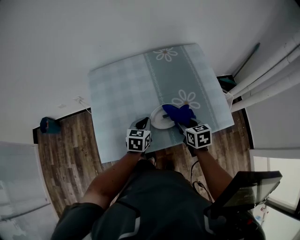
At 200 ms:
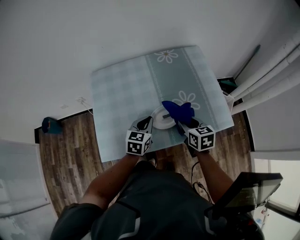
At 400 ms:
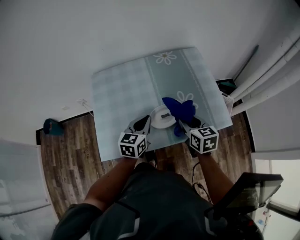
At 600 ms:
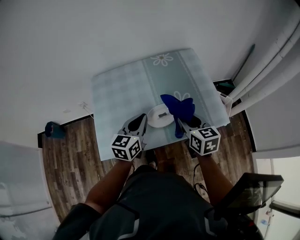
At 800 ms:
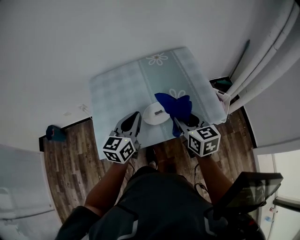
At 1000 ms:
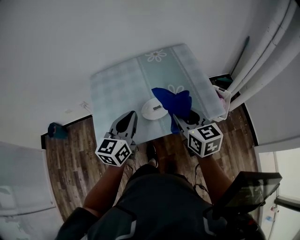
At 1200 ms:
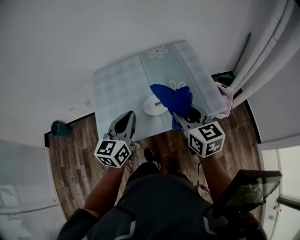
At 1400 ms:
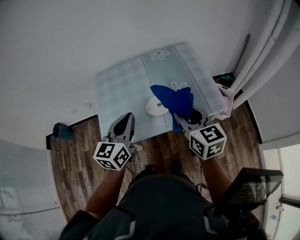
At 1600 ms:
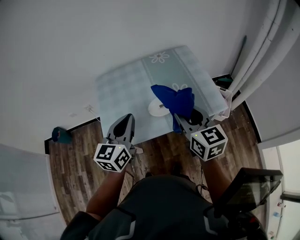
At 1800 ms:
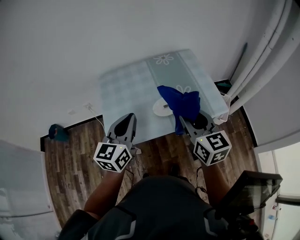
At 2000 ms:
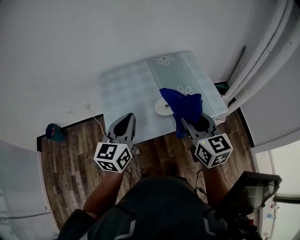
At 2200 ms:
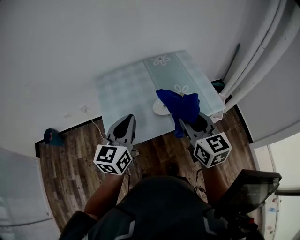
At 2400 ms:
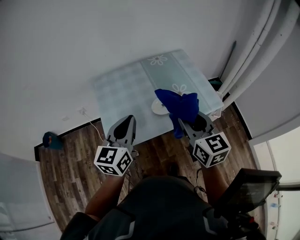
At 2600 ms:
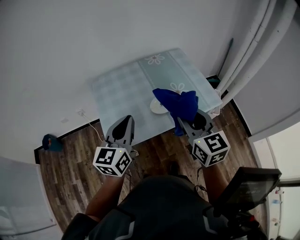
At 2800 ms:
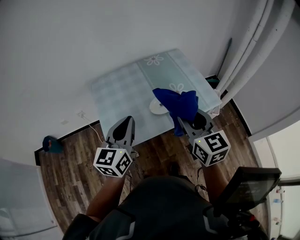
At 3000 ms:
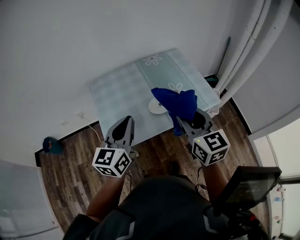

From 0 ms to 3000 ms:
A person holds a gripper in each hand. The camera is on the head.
From 0 ms to 1600 ms: The two grippers go about 25 cm upward and backward. The right gripper points its fingers some 30 degrees further upward; the left gripper turns by roughly 30 degrees.
From 1600 ms to 3000 ms: The left gripper shifts by some 5 cm, while the right gripper moves backward, roughly 5 cm.

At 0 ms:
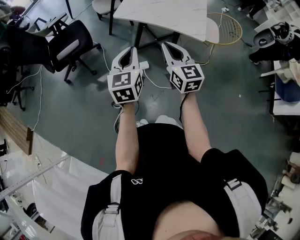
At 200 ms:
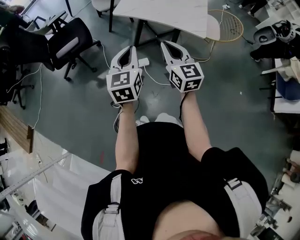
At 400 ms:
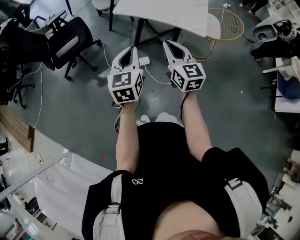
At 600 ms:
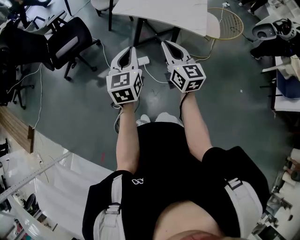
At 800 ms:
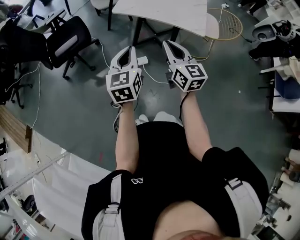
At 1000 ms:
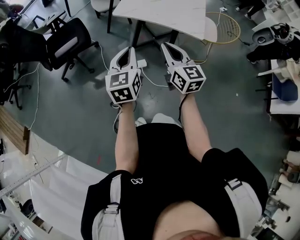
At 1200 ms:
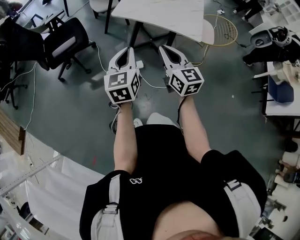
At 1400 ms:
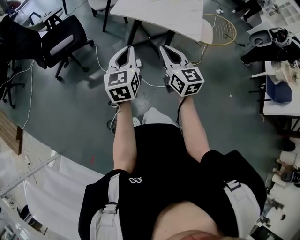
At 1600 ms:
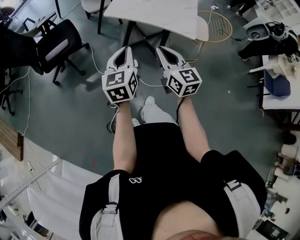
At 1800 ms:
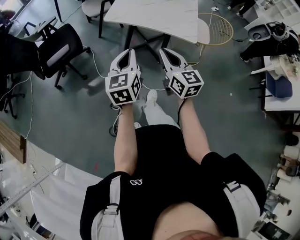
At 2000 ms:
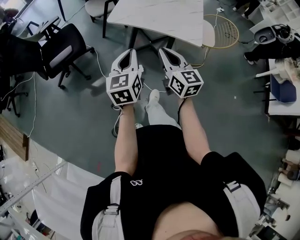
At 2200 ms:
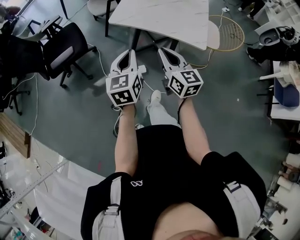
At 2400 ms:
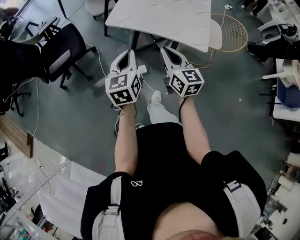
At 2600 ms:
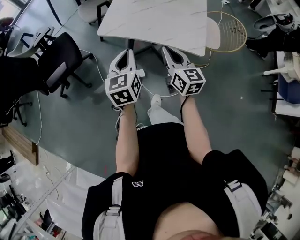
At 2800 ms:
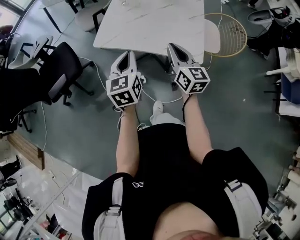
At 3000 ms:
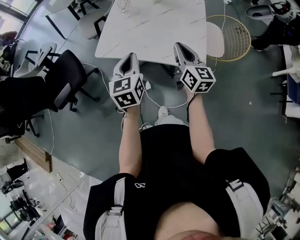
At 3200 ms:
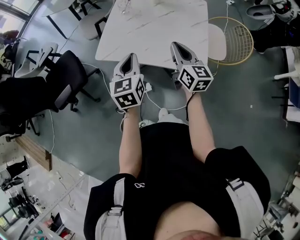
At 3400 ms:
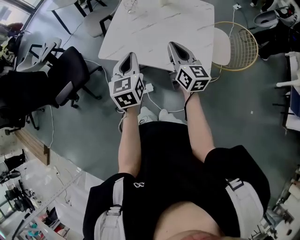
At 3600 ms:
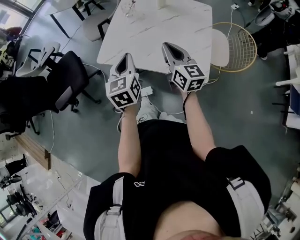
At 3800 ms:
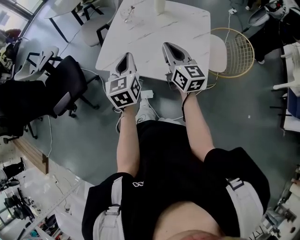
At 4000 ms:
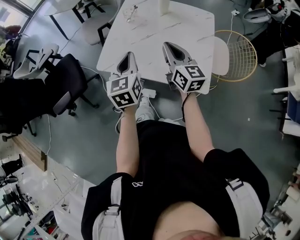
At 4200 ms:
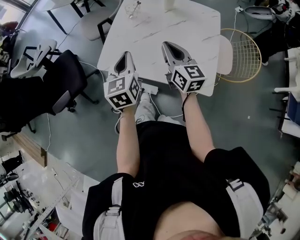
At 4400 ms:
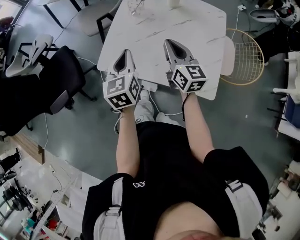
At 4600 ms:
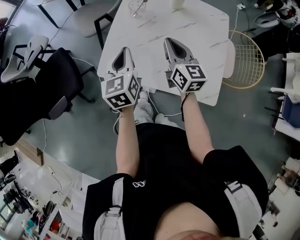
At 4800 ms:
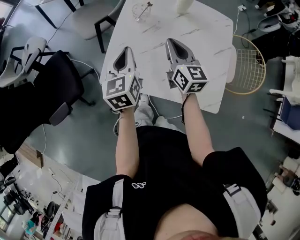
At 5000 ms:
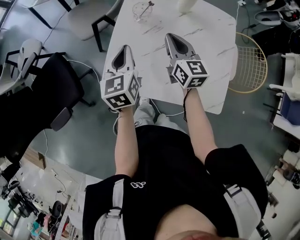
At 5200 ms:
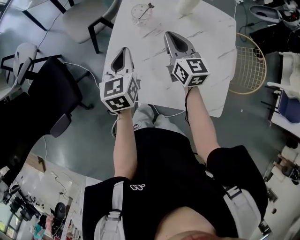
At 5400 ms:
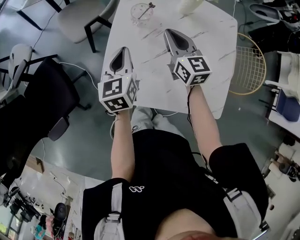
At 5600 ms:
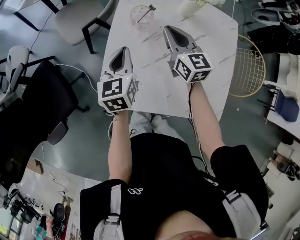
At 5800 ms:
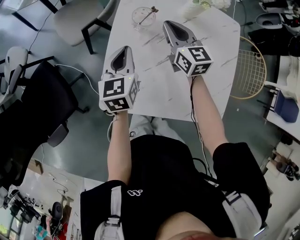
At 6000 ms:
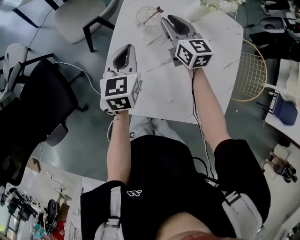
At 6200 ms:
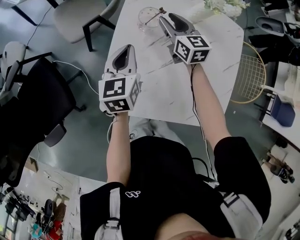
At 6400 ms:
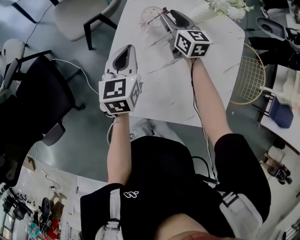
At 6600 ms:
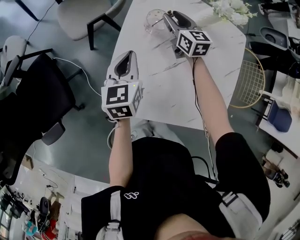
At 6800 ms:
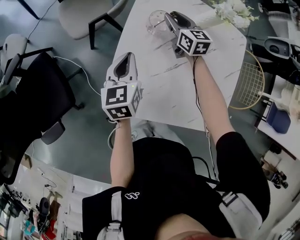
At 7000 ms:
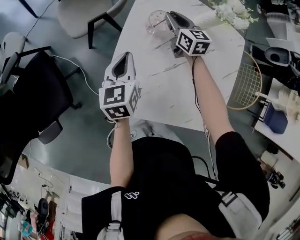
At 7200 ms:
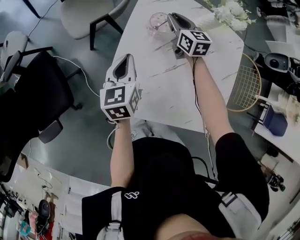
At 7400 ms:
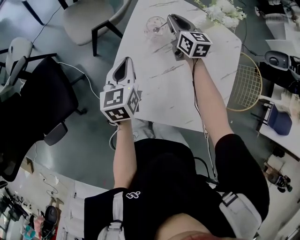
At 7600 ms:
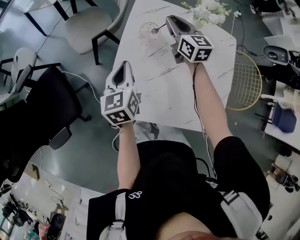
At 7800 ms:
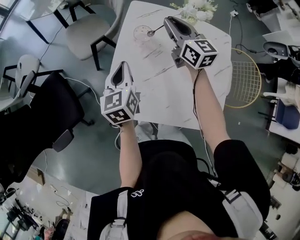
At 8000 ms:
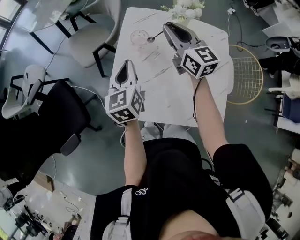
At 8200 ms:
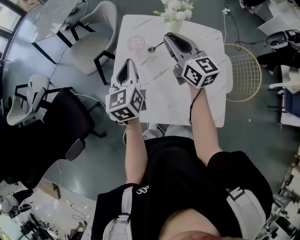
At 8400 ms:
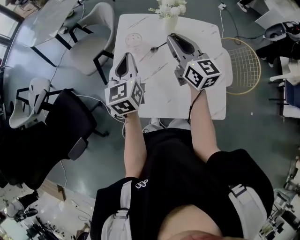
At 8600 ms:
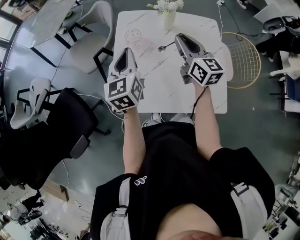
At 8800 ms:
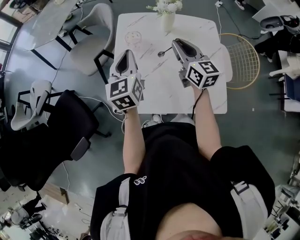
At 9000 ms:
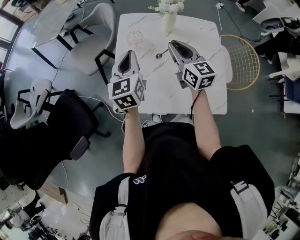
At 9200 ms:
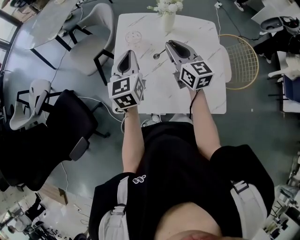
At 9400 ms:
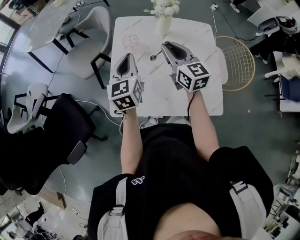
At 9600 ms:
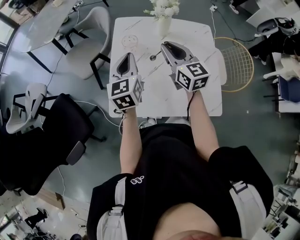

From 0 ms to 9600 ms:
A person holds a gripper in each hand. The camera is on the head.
From 0 ms to 1600 ms: The grippers move only a little.
From 1600 ms to 3200 ms: The grippers both shift forward and to the right by about 35 cm.
From 3200 ms to 4800 ms: The two grippers go some 25 cm forward.
From 4800 ms to 6400 ms: The right gripper moves forward and downward, approximately 25 cm, and opens up; the left gripper moves forward and downward, about 15 cm.
From 6400 ms to 8000 ms: The right gripper is displaced upward and backward by about 25 cm, rotates approximately 20 degrees, and closes up. Meanwhile the left gripper is displaced upward by about 10 cm.
From 8000 ms to 9600 ms: The right gripper moves backward, some 10 cm; the left gripper moves about 5 cm.

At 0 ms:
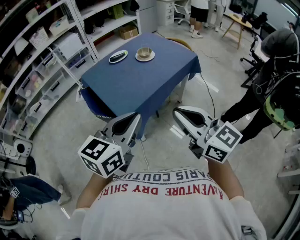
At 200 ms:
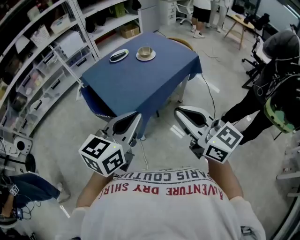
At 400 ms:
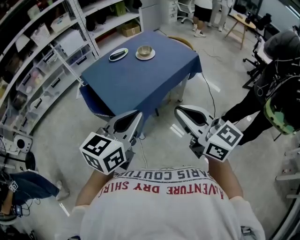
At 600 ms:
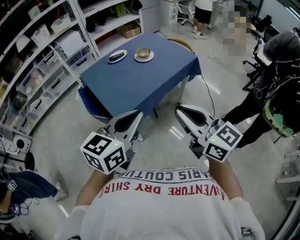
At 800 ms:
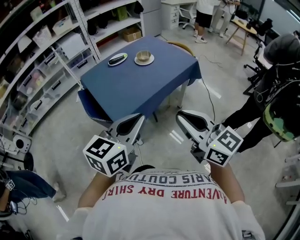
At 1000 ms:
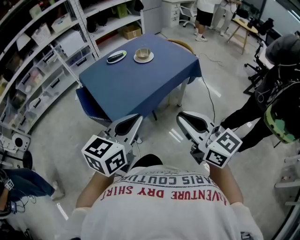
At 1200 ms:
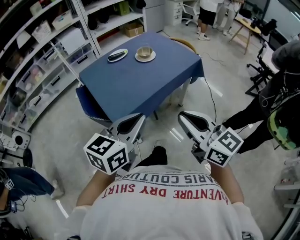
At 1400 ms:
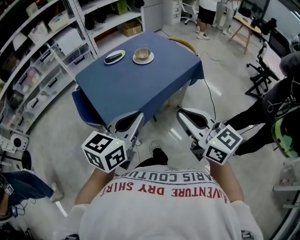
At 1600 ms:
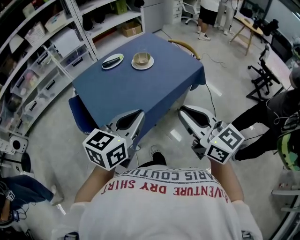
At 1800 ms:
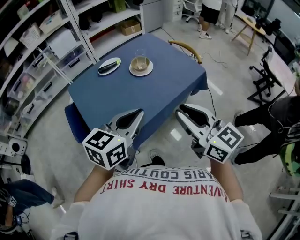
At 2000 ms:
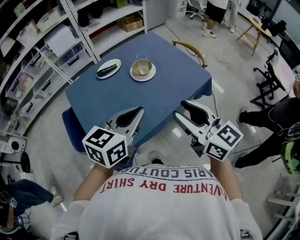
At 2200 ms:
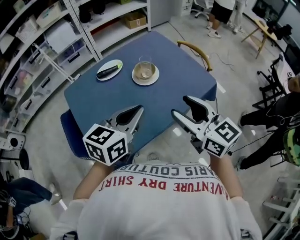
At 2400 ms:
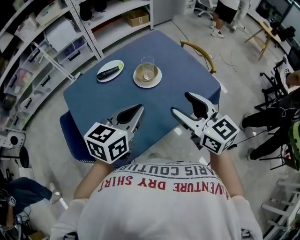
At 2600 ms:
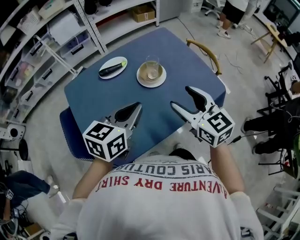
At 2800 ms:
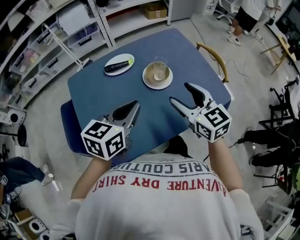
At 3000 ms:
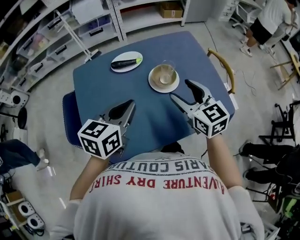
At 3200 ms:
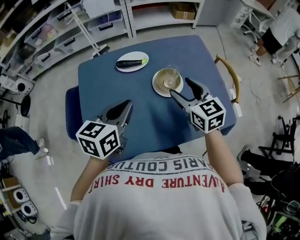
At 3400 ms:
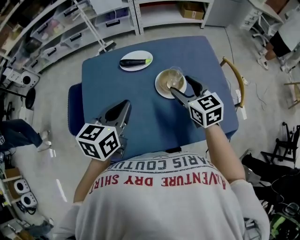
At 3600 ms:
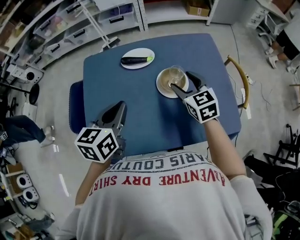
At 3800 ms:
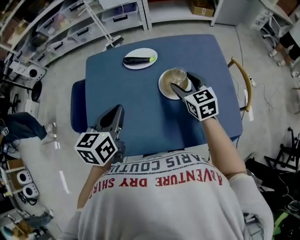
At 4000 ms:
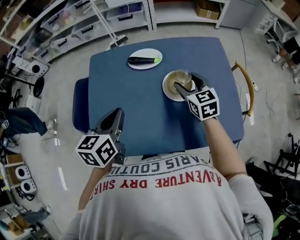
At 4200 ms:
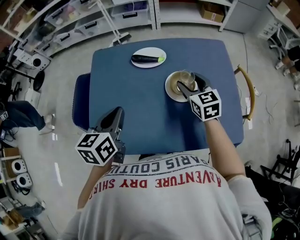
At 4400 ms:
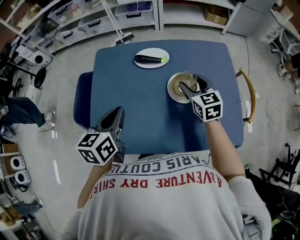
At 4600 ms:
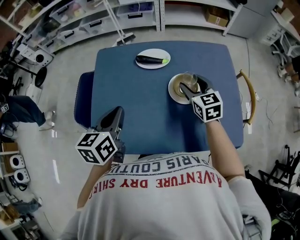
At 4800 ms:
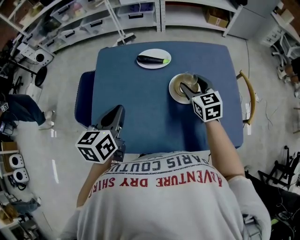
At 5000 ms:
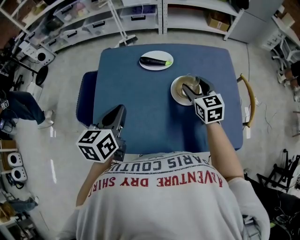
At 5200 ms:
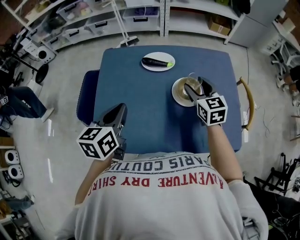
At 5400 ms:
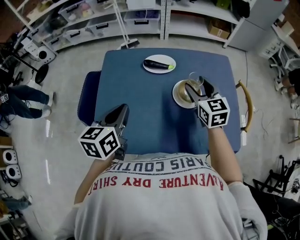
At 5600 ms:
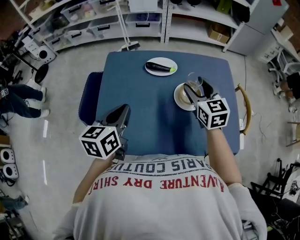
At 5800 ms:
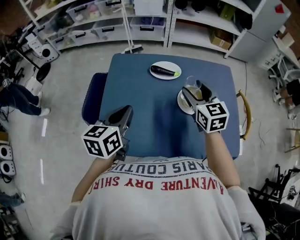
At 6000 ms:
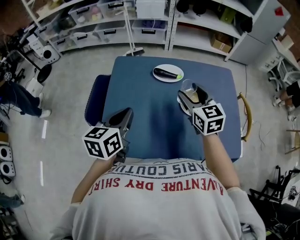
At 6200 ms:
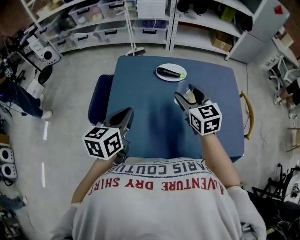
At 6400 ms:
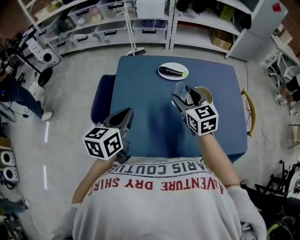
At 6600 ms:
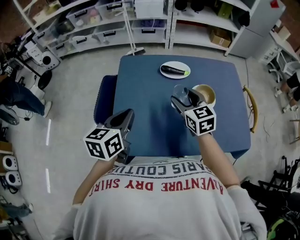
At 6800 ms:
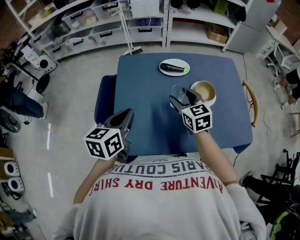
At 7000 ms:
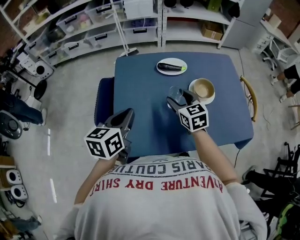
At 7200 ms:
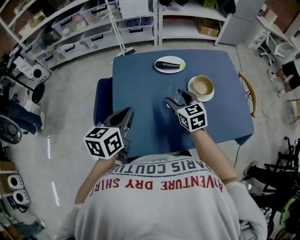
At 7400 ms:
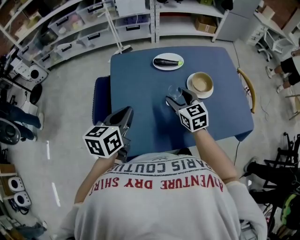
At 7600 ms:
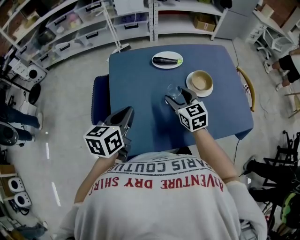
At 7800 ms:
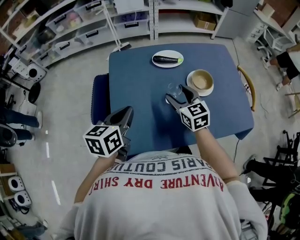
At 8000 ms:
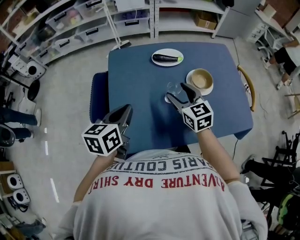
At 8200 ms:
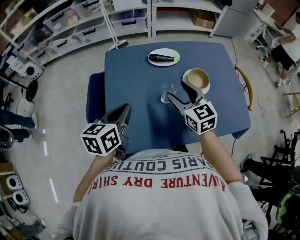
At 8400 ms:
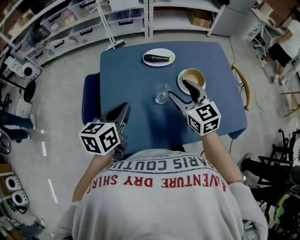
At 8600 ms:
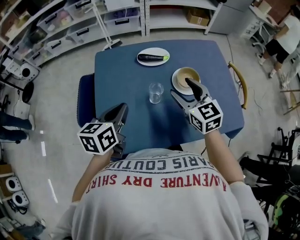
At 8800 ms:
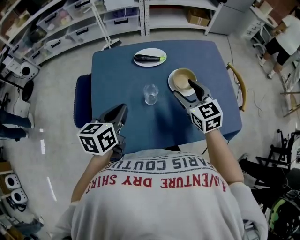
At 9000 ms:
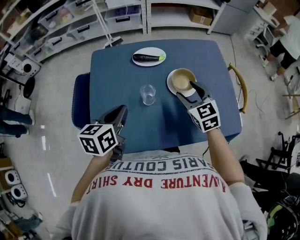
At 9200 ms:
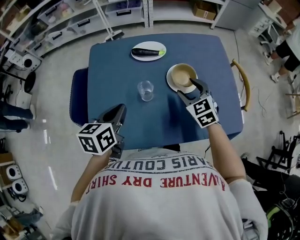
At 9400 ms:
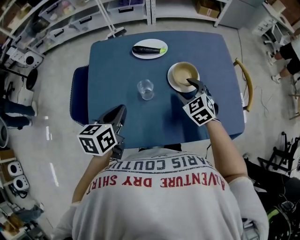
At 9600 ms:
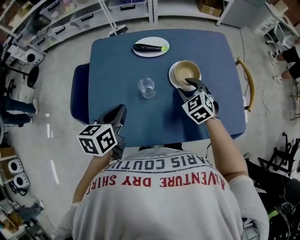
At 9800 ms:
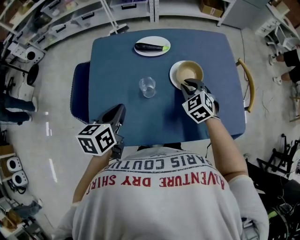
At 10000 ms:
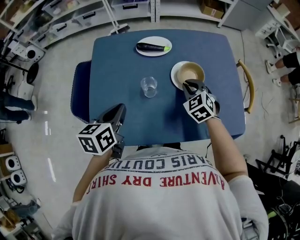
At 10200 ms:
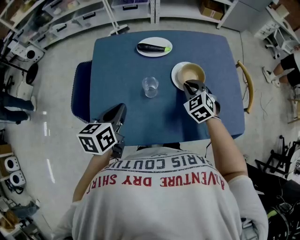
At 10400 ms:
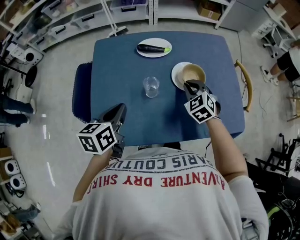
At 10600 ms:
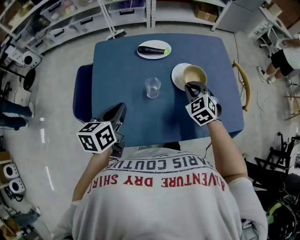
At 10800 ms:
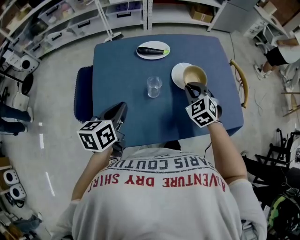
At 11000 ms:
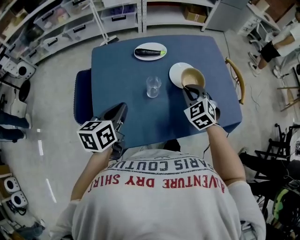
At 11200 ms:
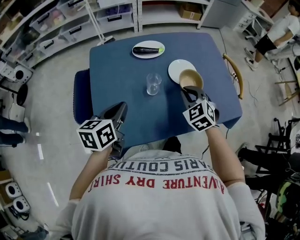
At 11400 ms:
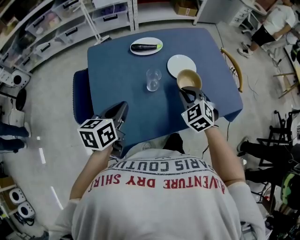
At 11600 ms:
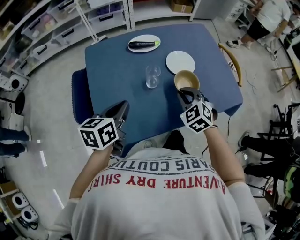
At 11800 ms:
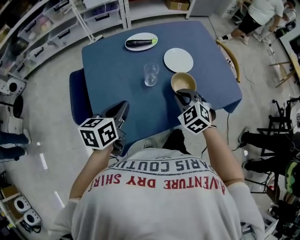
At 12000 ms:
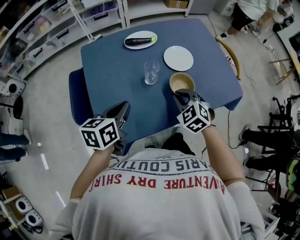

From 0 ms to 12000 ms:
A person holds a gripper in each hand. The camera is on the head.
From 0 ms to 1600 ms: Both grippers travel together forward and to the right, roughly 15 cm.
From 1600 ms to 3000 ms: The grippers both shift forward by about 35 cm. The left gripper turns by approximately 30 degrees. Meanwhile the right gripper swivels roughly 20 degrees, and opens.
From 3000 ms to 4400 ms: The right gripper is displaced forward and downward by about 15 cm. Meanwhile the left gripper heads to the left, covering some 10 cm, and rotates some 30 degrees.
From 4400 ms to 6000 ms: The right gripper shifts some 15 cm to the left and upward; the left gripper moves to the left, roughly 5 cm.
From 6000 ms to 7600 ms: The right gripper is displaced downward and to the left by about 15 cm, while the left gripper moves to the left, approximately 5 cm.
From 7600 ms to 9000 ms: The right gripper shifts some 15 cm to the right, while the left gripper travels to the right by approximately 10 cm.
From 9000 ms to 10400 ms: The right gripper moves downward, approximately 5 cm, rotates approximately 20 degrees, and closes its fingers.
From 10400 ms to 12000 ms: The right gripper goes approximately 15 cm backward.
